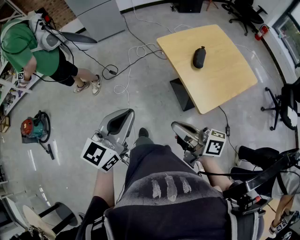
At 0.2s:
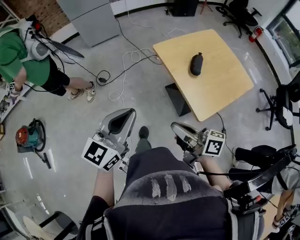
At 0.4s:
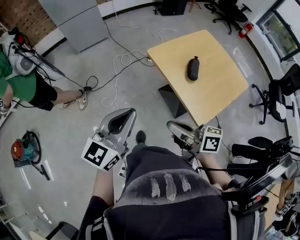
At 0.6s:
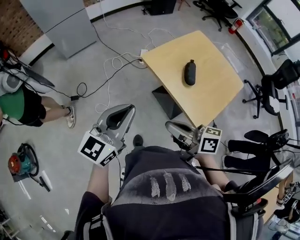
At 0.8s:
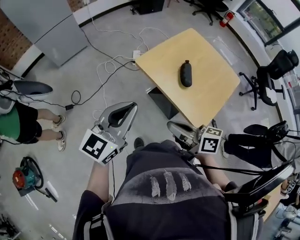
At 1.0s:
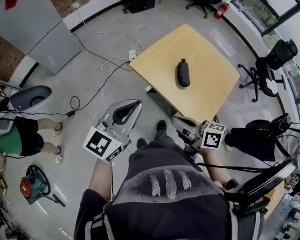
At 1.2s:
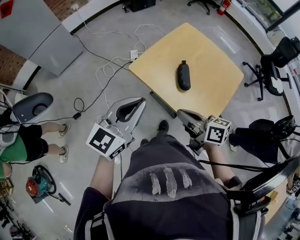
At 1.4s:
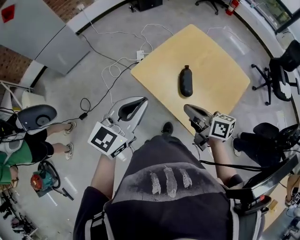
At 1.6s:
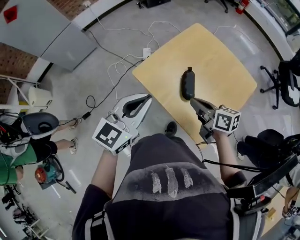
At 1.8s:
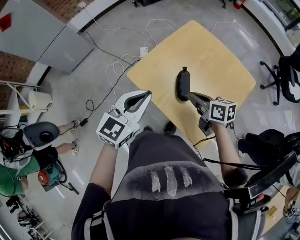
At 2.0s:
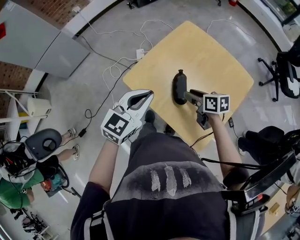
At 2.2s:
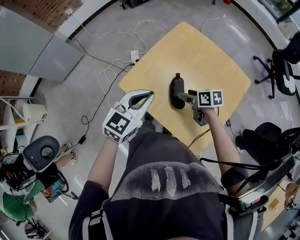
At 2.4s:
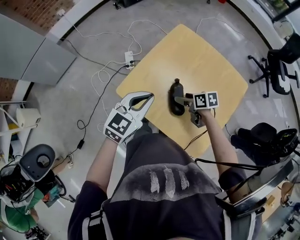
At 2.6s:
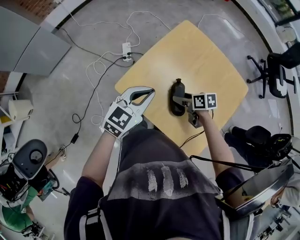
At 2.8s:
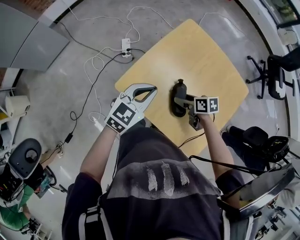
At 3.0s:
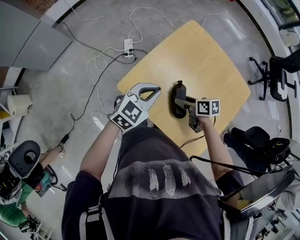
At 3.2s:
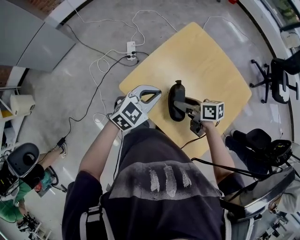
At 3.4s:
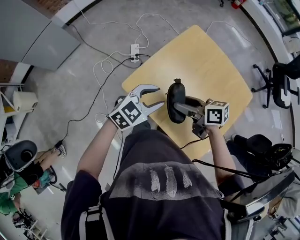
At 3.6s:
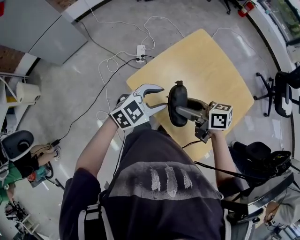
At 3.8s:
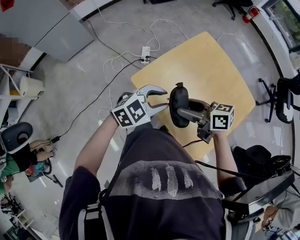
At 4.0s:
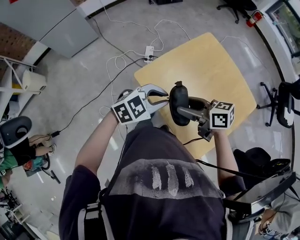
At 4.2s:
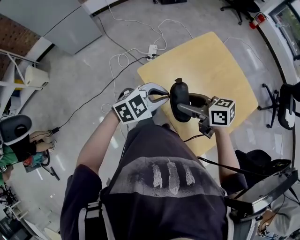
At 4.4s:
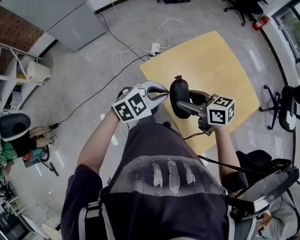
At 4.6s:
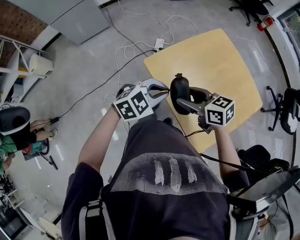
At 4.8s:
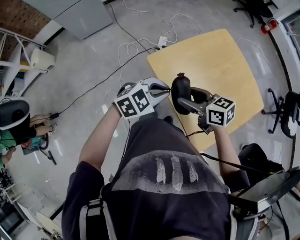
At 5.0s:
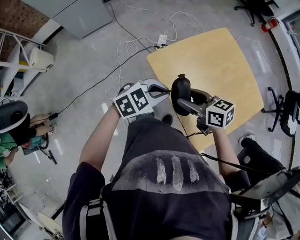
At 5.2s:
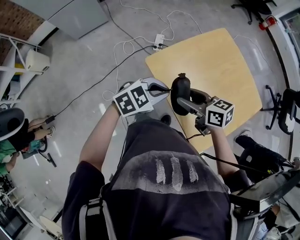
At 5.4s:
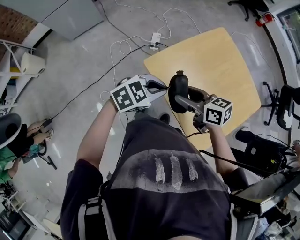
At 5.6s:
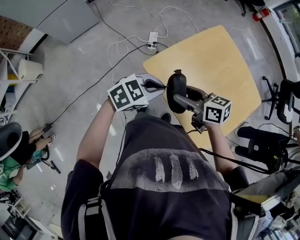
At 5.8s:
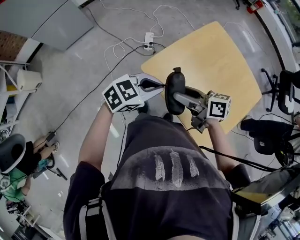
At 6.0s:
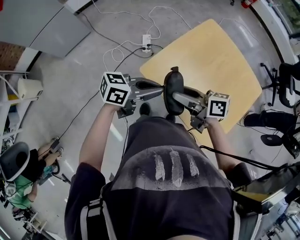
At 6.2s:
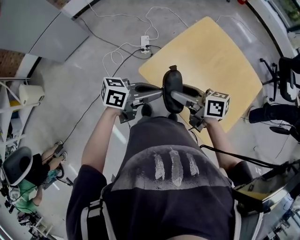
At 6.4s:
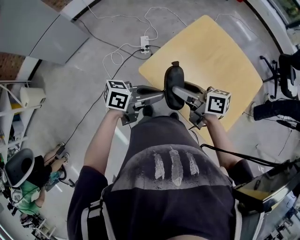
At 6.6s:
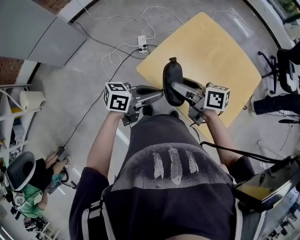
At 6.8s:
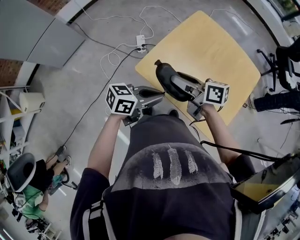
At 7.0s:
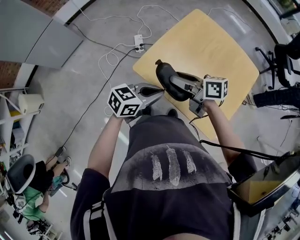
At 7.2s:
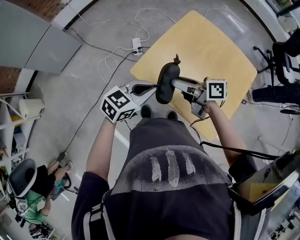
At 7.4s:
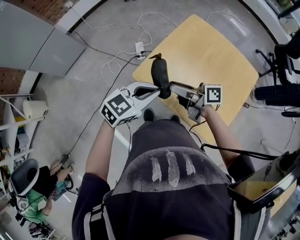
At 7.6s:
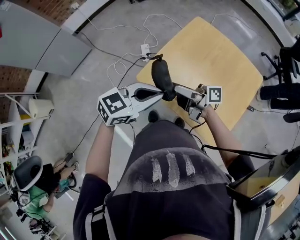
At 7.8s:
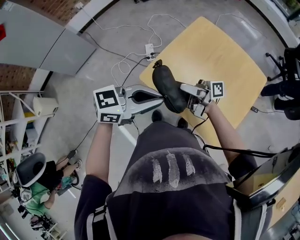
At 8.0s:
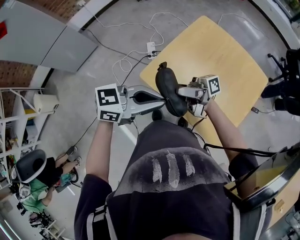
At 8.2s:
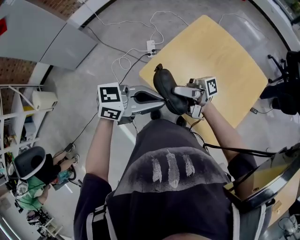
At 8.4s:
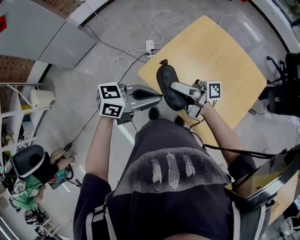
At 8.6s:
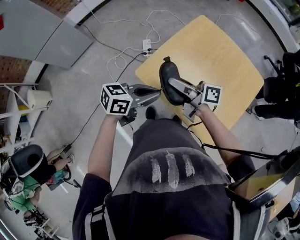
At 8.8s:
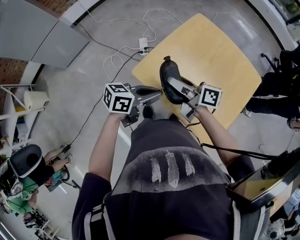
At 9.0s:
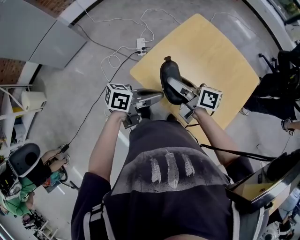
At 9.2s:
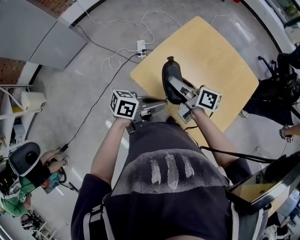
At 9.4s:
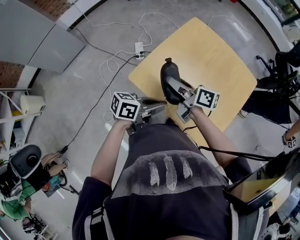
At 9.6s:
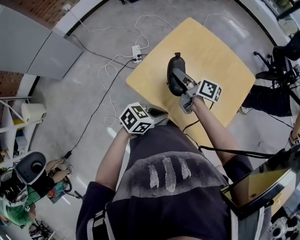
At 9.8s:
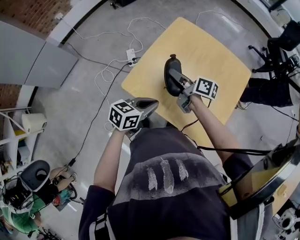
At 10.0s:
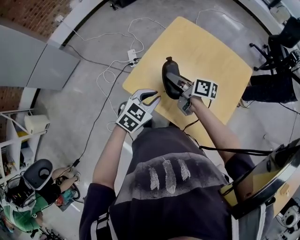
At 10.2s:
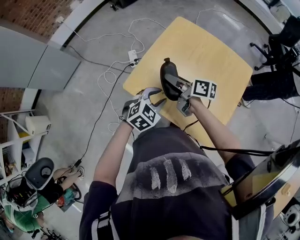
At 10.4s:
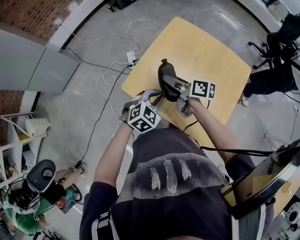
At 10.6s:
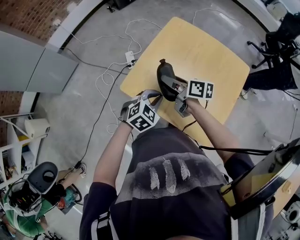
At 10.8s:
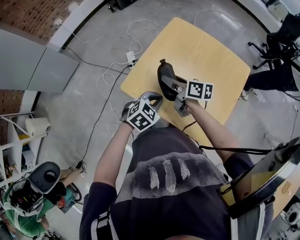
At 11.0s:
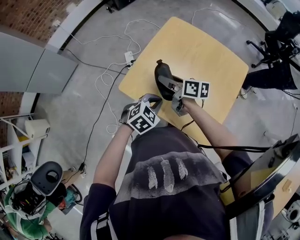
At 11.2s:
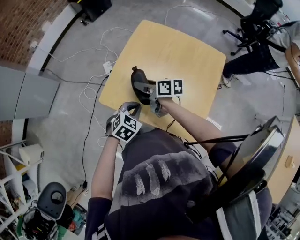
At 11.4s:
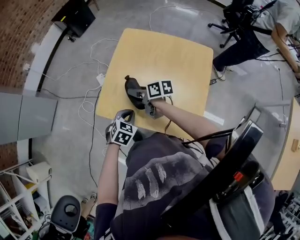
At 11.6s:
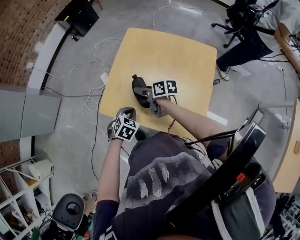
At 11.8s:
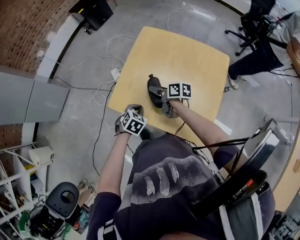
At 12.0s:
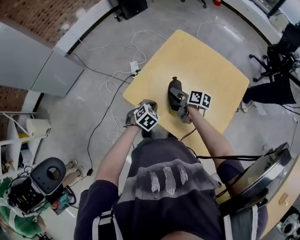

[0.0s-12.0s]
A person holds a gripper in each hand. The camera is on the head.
0.0s to 1.6s: The grippers both shift forward and to the right by about 35 cm. The left gripper swivels approximately 30 degrees. Meanwhile the right gripper changes its angle by some 30 degrees.
1.6s to 3.0s: The left gripper heads forward and downward, covering roughly 25 cm, and swivels approximately 20 degrees. The right gripper moves downward and forward, some 20 cm, changes its angle by approximately 30 degrees, and opens its fingers.
3.0s to 4.4s: The right gripper travels upward by roughly 15 cm, and changes its angle by roughly 40 degrees. Meanwhile the left gripper changes place by roughly 15 cm, and opens, then closes again.
4.4s to 6.0s: The right gripper ends up approximately 10 cm from where it was, and changes its angle by approximately 30 degrees, while the left gripper shifts by approximately 10 cm, and changes its angle by roughly 50 degrees.
6.0s to 7.6s: The left gripper ends up approximately 5 cm from where it was, and changes its angle by some 30 degrees. The right gripper swivels some 30 degrees.
7.6s to 9.0s: The right gripper reaches approximately 5 cm upward, then returns, and changes its angle by roughly 30 degrees; the left gripper travels downward by about 10 cm, and twists roughly 40 degrees counterclockwise, seen from behind.
9.0s to 10.4s: The right gripper shifts by about 5 cm. Meanwhile the left gripper changes place by some 10 cm, rotates around the line of its fingers by some 60 degrees, clockwise from behind, and opens, then closes again.
10.4s to 12.0s: The left gripper moves downward, roughly 10 cm, and rotates about 20 degrees. Meanwhile the right gripper moves downward and to the right, some 15 cm.

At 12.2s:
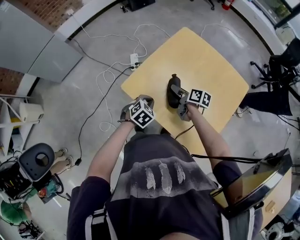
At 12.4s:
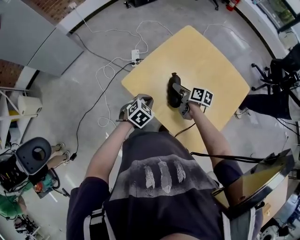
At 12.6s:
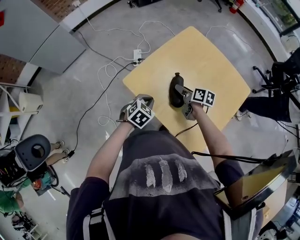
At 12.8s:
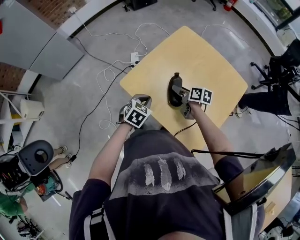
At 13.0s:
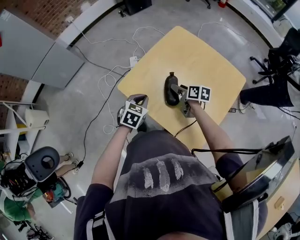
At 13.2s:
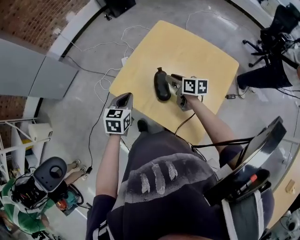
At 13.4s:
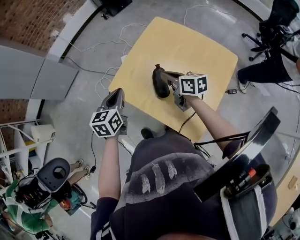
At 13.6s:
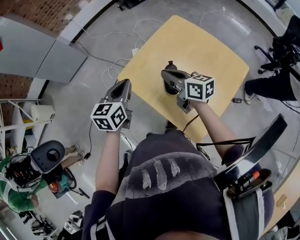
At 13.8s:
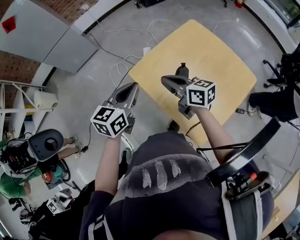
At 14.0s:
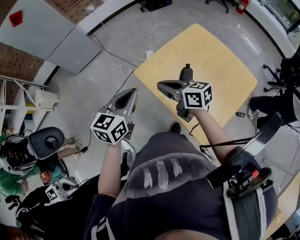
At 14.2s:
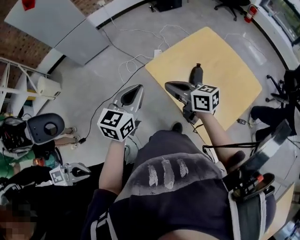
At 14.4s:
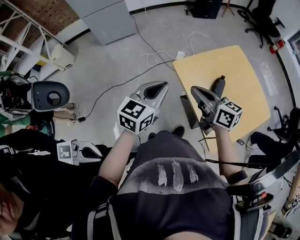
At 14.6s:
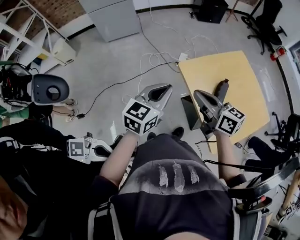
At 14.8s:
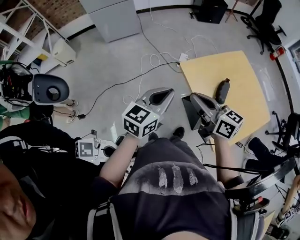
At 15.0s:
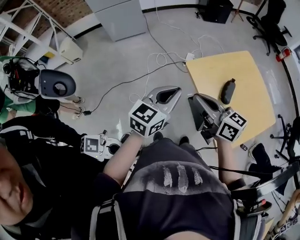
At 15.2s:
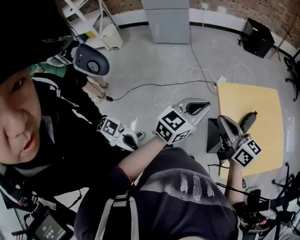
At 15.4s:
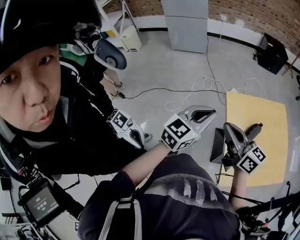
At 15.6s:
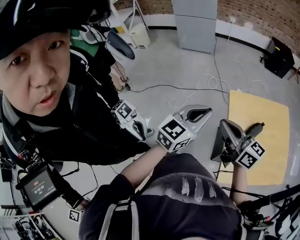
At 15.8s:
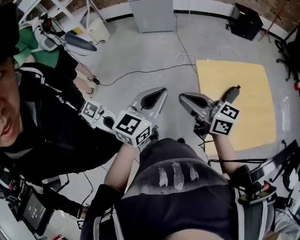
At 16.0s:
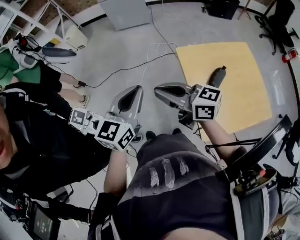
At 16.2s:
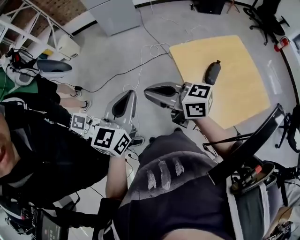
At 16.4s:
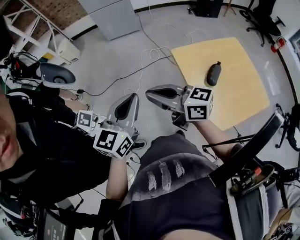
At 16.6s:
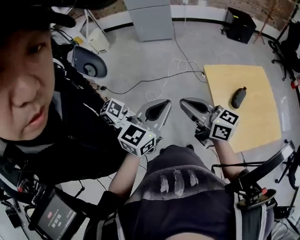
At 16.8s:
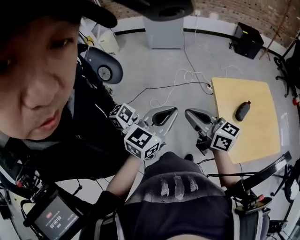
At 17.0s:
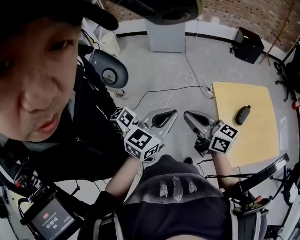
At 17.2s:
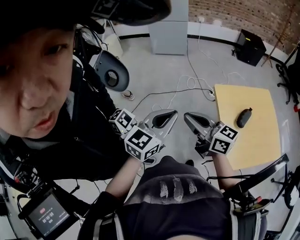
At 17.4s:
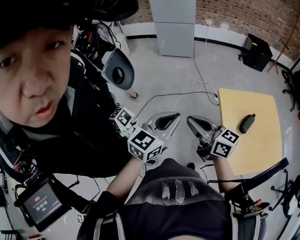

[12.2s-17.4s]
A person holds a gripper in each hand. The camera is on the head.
12.2s to 14.0s: The left gripper moves upward, about 25 cm, and tips its fingers upward by some 40 degrees, while the right gripper goes approximately 25 cm upward, to the left and backward, rotates some 50 degrees, and closes its fingers.
14.0s to 15.6s: The two grippers go some 20 cm backward, to the left and upward. The right gripper changes its angle by some 30 degrees. The left gripper rotates approximately 20 degrees.
15.6s to 17.4s: The grippers both shift to the left by some 5 cm.

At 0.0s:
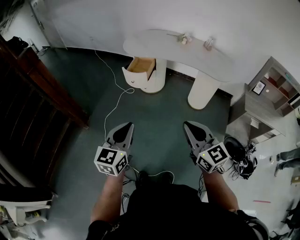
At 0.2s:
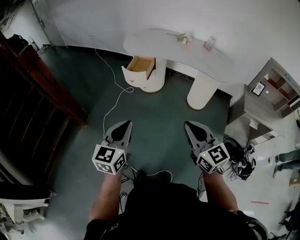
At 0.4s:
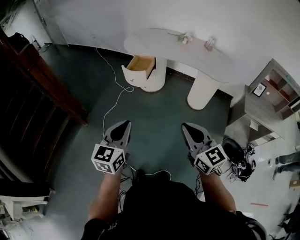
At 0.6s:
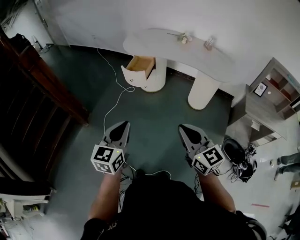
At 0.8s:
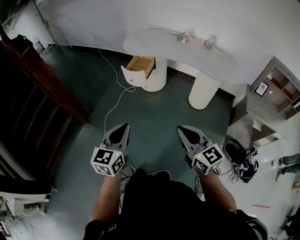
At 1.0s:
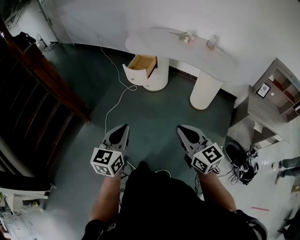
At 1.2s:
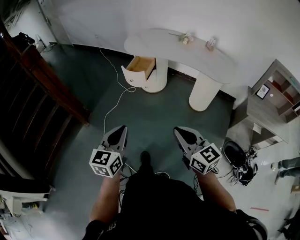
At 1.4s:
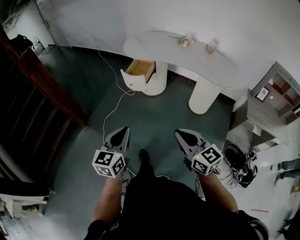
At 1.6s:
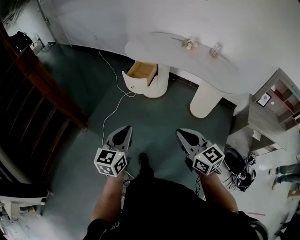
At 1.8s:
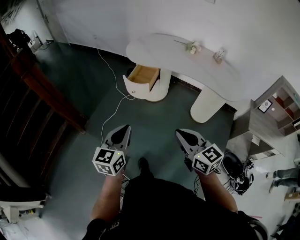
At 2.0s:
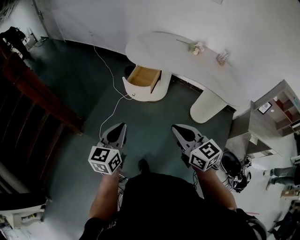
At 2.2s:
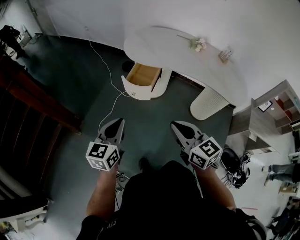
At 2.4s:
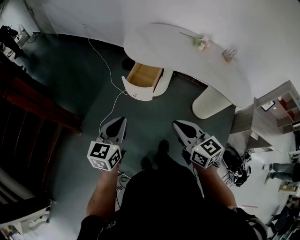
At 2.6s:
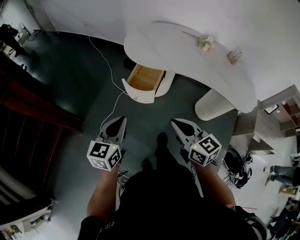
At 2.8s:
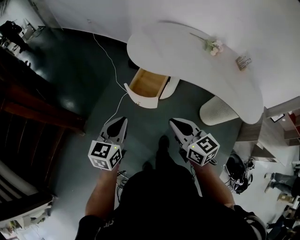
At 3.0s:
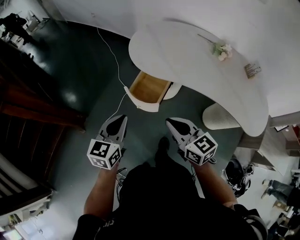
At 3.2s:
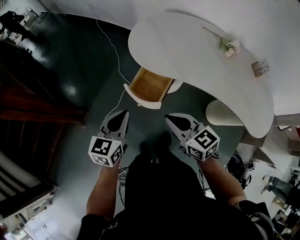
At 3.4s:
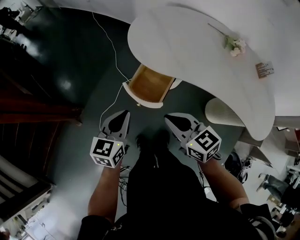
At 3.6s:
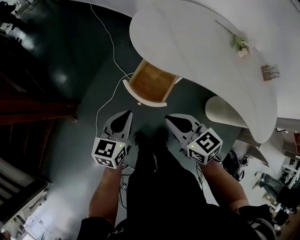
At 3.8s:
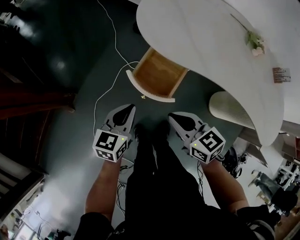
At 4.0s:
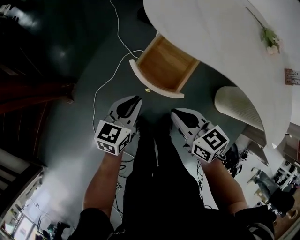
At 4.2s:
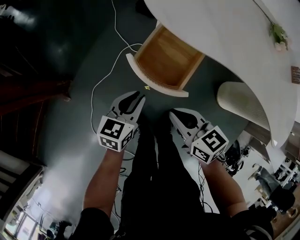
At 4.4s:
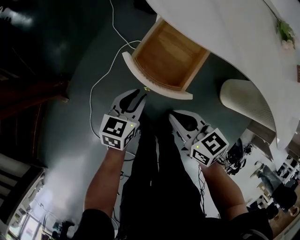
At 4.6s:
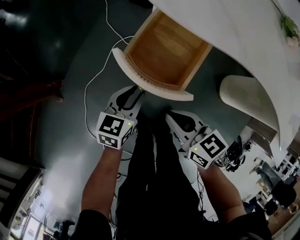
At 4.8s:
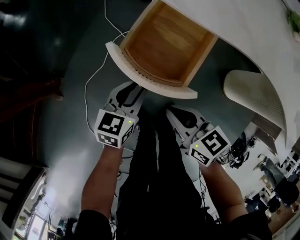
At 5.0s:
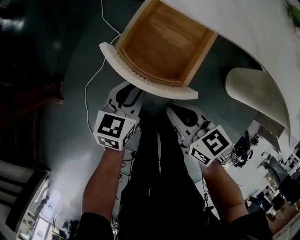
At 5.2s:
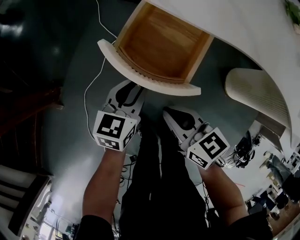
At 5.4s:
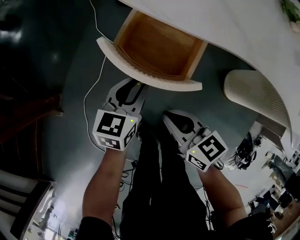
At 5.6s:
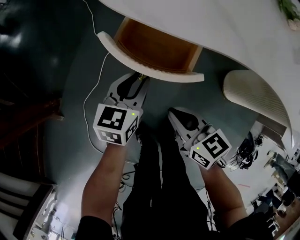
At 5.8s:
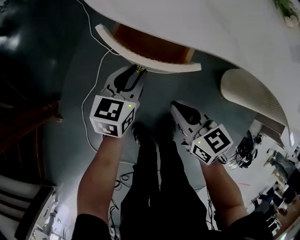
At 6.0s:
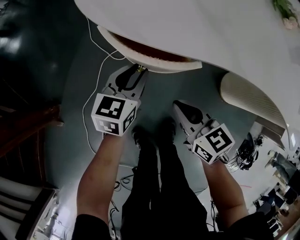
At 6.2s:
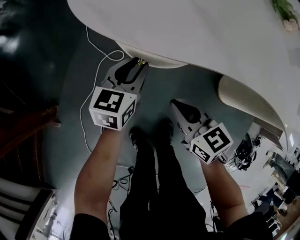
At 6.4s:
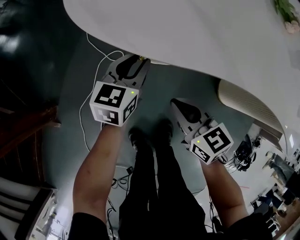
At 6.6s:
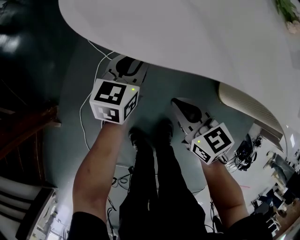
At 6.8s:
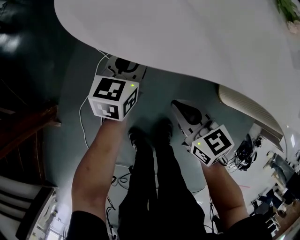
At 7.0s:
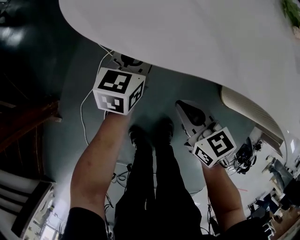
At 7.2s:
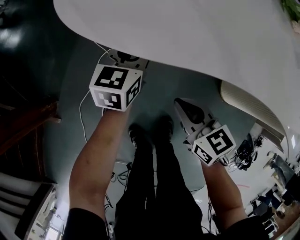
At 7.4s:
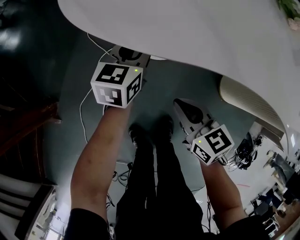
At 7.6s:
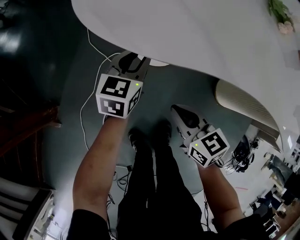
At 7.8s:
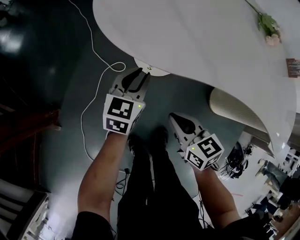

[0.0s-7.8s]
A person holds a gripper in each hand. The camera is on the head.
0.0s to 1.6s: The grippers both shift forward by about 5 cm.
1.6s to 3.2s: The pair of grippers is taken forward, roughly 50 cm. The right gripper rotates about 20 degrees.
3.2s to 4.6s: The two grippers go about 35 cm downward. The left gripper opens its fingers.
4.6s to 6.2s: The left gripper is displaced forward and to the right by approximately 20 cm. The right gripper heads to the right, forward and downward, covering approximately 15 cm.
6.2s to 7.8s: Both grippers travel together upward, about 5 cm.
